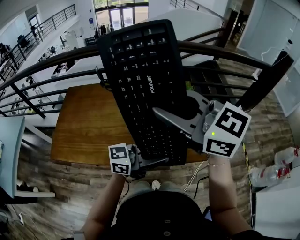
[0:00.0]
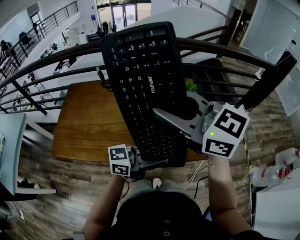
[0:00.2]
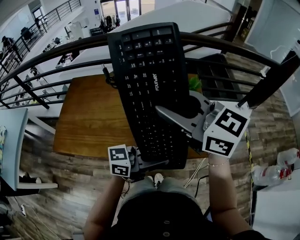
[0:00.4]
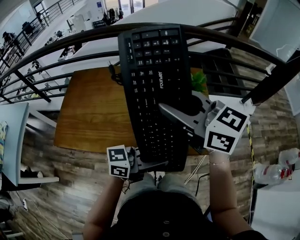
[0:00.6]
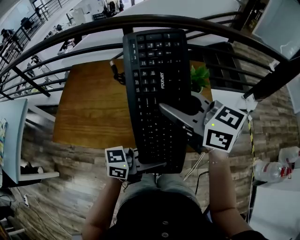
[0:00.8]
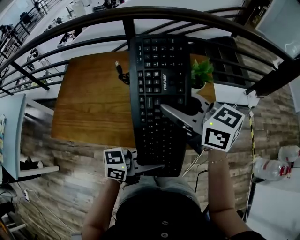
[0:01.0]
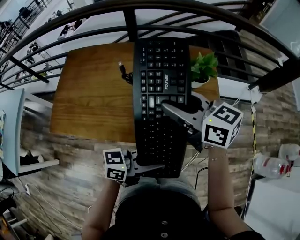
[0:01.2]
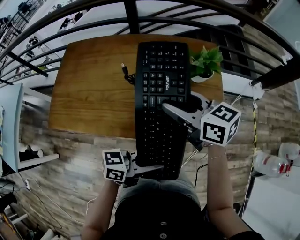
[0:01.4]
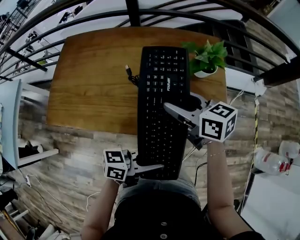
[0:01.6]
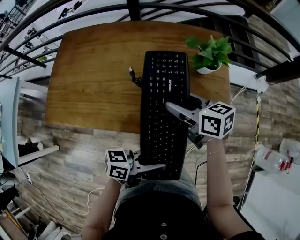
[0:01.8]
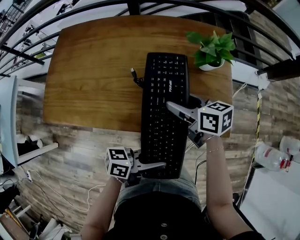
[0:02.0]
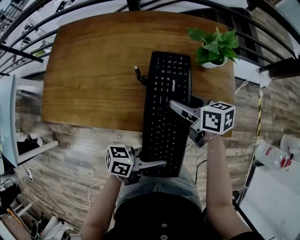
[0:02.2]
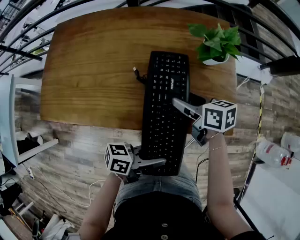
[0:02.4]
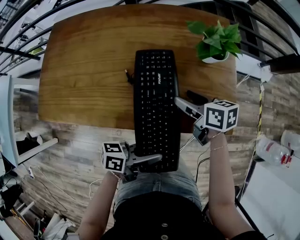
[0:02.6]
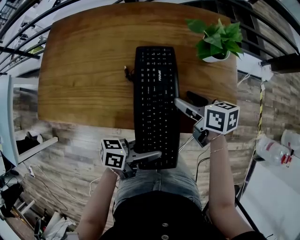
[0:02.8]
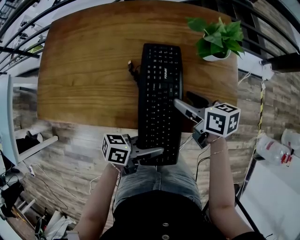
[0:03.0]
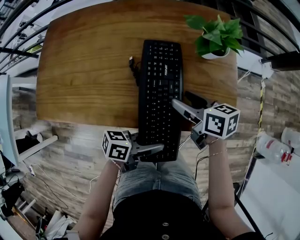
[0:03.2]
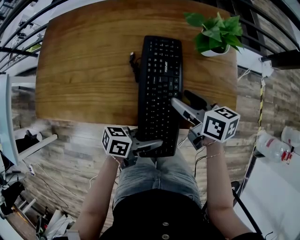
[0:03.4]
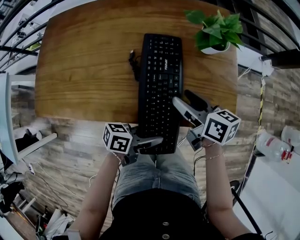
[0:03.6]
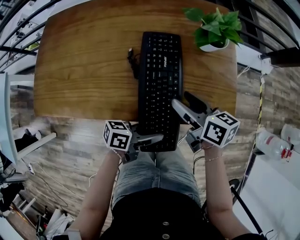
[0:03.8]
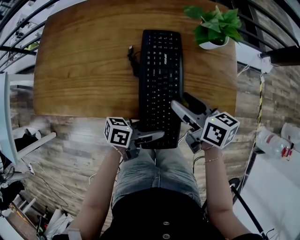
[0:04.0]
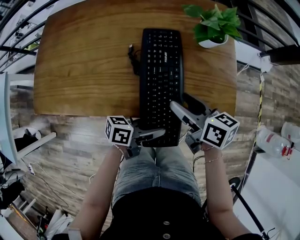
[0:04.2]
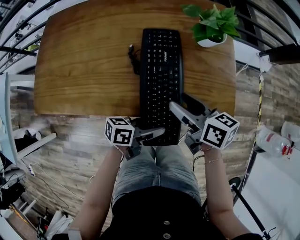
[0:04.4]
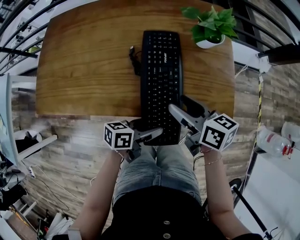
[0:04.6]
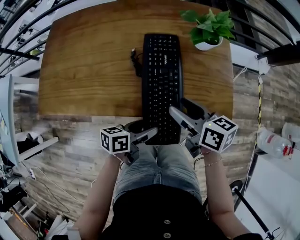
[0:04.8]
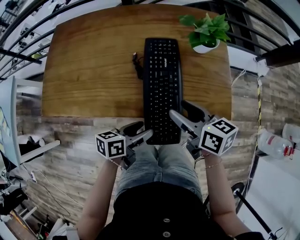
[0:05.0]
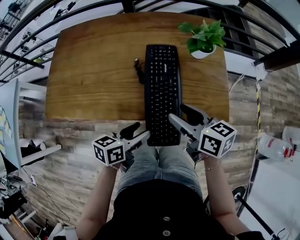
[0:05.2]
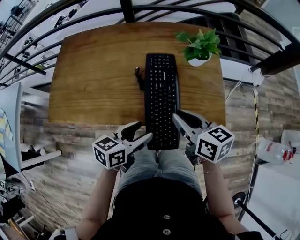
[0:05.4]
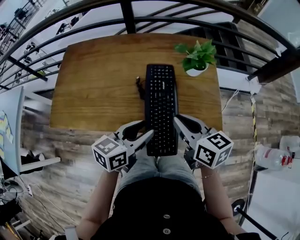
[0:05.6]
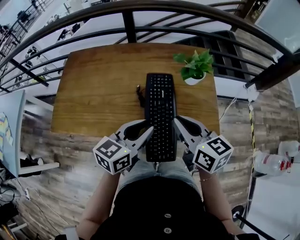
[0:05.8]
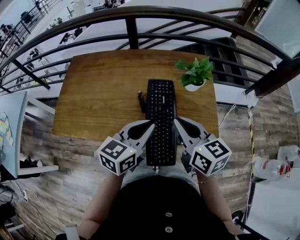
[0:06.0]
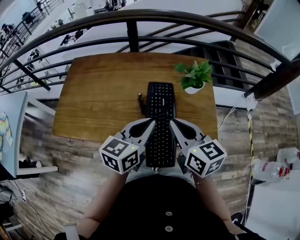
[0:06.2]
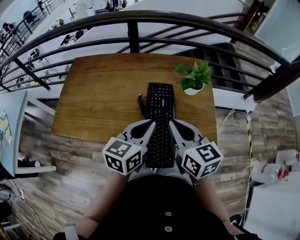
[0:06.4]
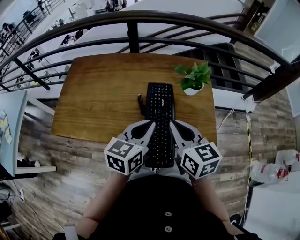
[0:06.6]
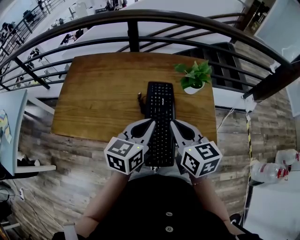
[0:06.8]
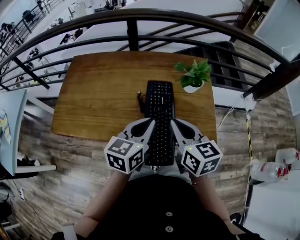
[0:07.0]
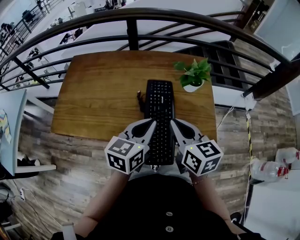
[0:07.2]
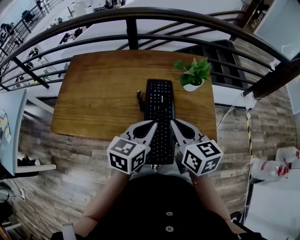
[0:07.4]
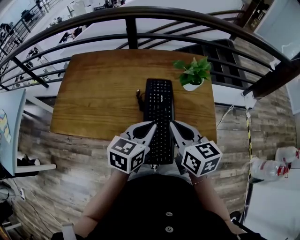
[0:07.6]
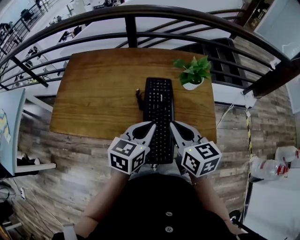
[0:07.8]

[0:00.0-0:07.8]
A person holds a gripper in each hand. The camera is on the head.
0:00.0 to 0:01.6: The left gripper goes approximately 15 cm downward, and rotates roughly 30 degrees, while the right gripper goes approximately 25 cm downward, turns by some 40 degrees, and opens.
0:01.6 to 0:03.2: The two grippers go roughly 10 cm downward. The right gripper swivels roughly 20 degrees.
0:03.2 to 0:04.6: The left gripper opens. The right gripper moves some 5 cm.
0:04.6 to 0:06.2: The right gripper heads upward, covering approximately 15 cm, turns by approximately 30 degrees, and closes up. The left gripper is displaced upward and forward by about 25 cm, rotates about 50 degrees, and closes up.
0:06.2 to 0:07.8: The grippers stay close to where they were, moving slightly.

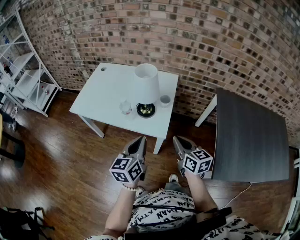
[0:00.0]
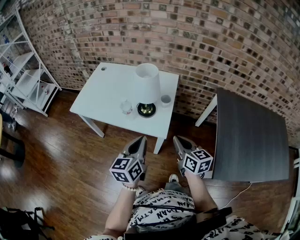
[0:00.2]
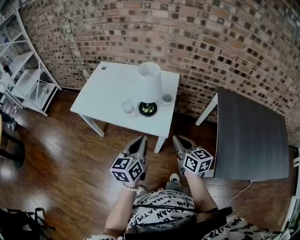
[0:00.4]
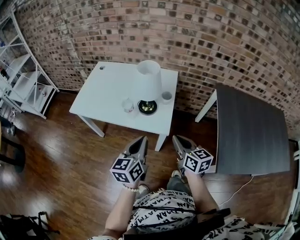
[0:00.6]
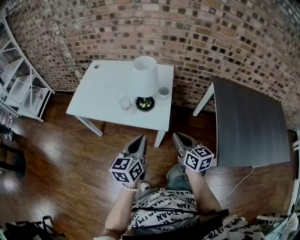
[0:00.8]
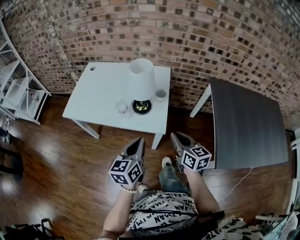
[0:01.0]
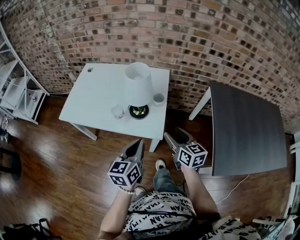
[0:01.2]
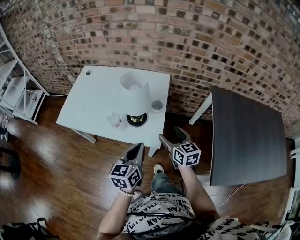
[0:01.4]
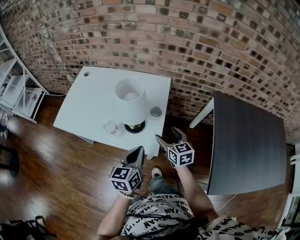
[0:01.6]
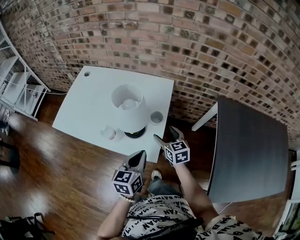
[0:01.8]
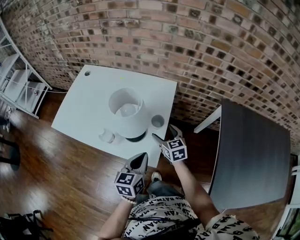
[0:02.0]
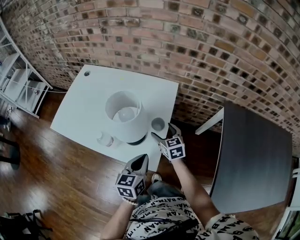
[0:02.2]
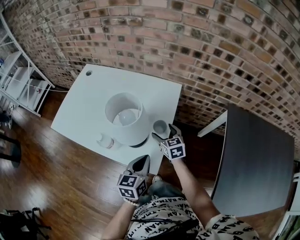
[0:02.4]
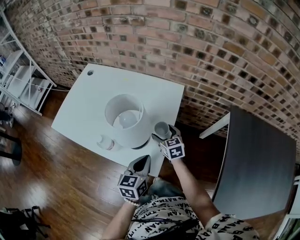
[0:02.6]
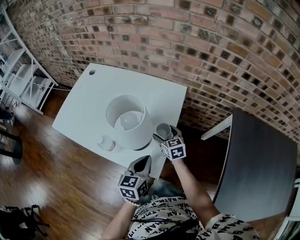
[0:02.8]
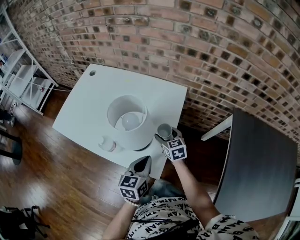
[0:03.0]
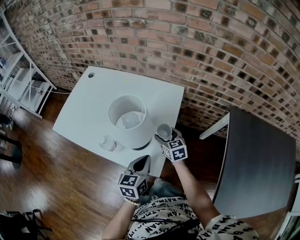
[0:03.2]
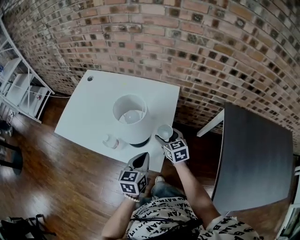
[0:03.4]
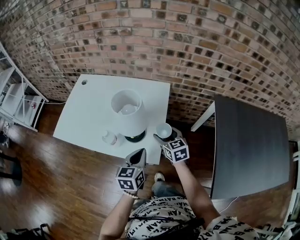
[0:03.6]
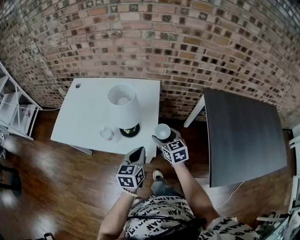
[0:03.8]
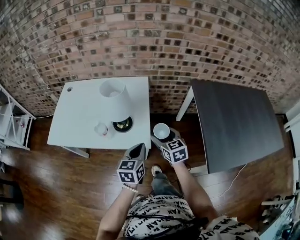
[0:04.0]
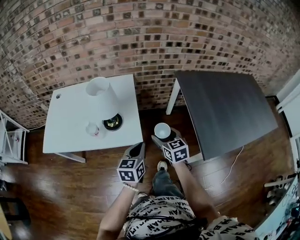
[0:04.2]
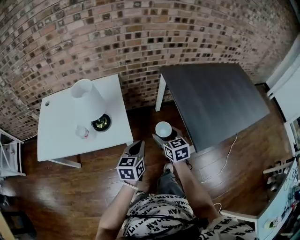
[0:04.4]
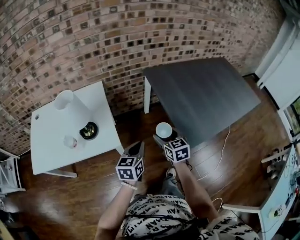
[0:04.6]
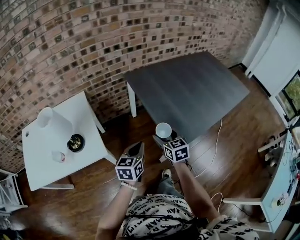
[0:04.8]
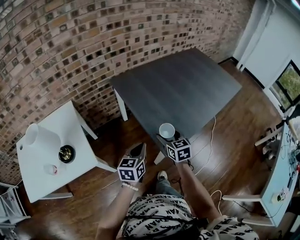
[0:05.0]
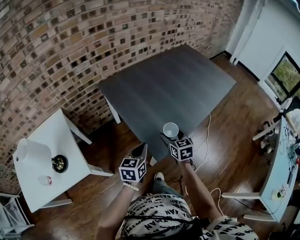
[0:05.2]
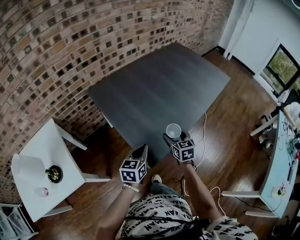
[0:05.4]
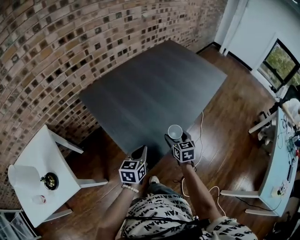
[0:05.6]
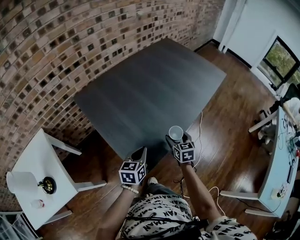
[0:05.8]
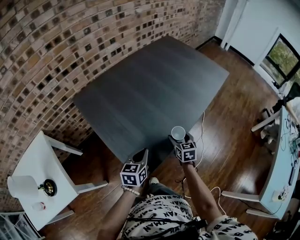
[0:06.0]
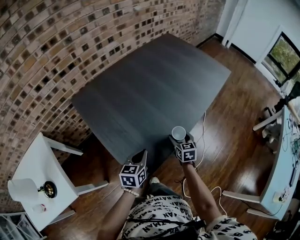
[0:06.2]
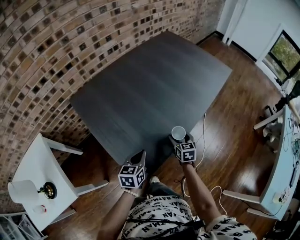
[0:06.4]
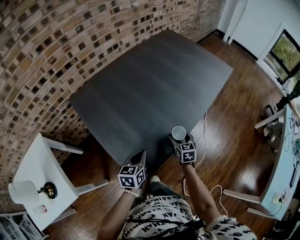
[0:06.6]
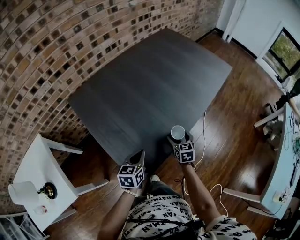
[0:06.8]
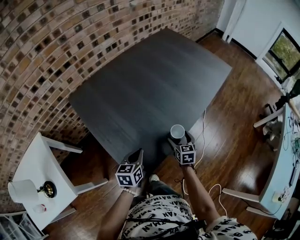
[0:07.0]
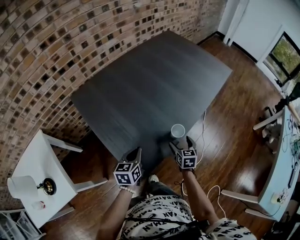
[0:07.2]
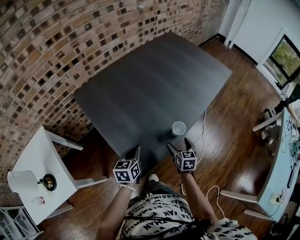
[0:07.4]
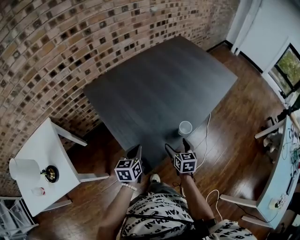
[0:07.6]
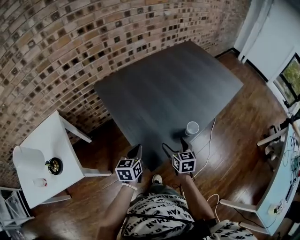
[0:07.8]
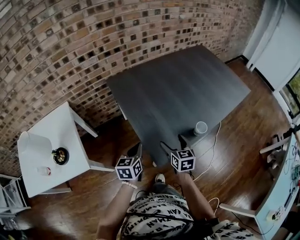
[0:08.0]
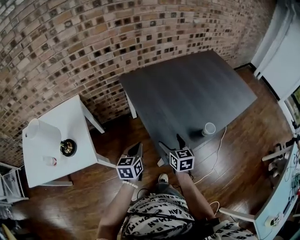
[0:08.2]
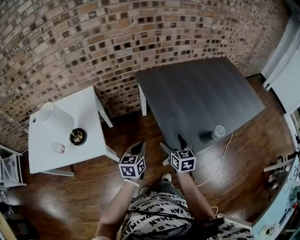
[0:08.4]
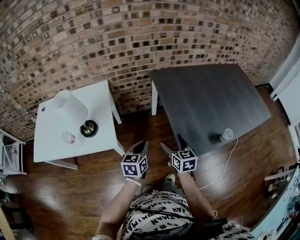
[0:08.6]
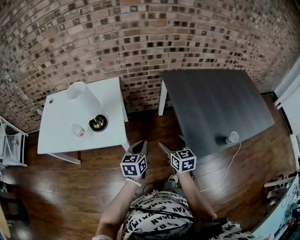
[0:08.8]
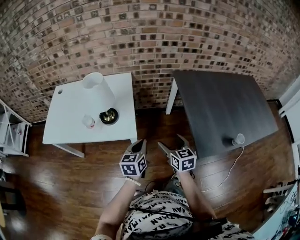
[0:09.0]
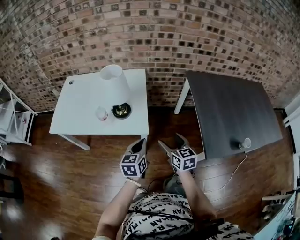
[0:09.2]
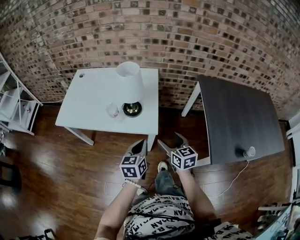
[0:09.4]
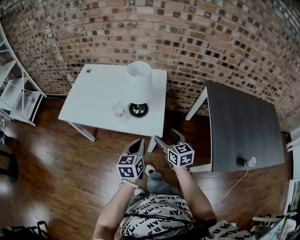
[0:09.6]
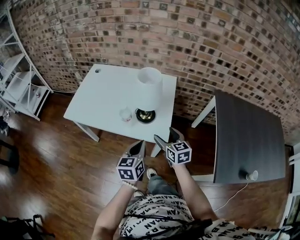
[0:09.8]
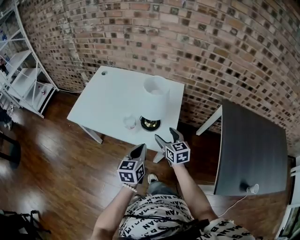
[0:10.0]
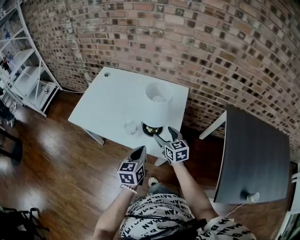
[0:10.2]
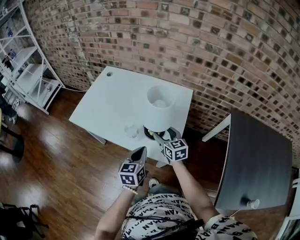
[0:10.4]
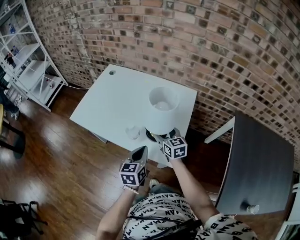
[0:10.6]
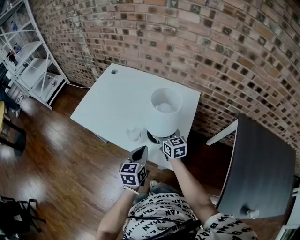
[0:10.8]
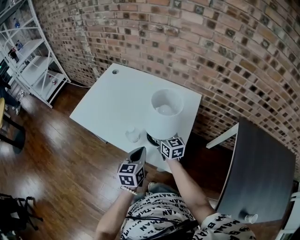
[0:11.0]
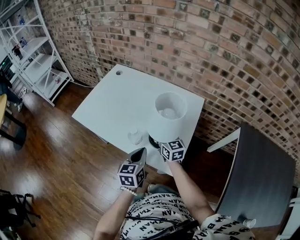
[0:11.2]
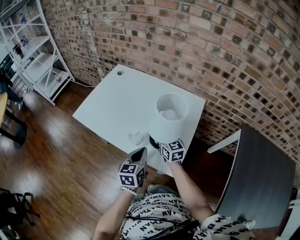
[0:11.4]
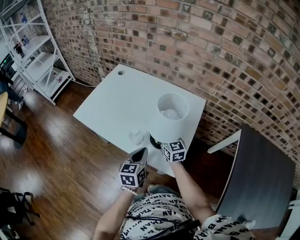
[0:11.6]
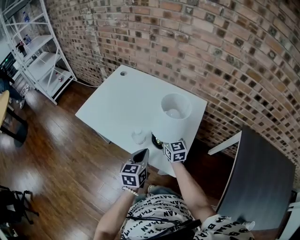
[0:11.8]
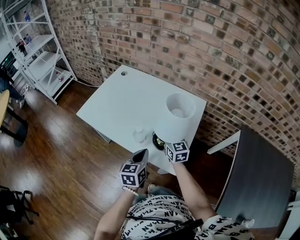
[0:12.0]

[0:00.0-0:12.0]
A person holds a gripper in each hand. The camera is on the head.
0:00.0 to 0:01.6: The right gripper goes some 20 cm forward and downward, and opens up. Meanwhile the left gripper heads forward and downward, covering roughly 10 cm.
0:01.6 to 0:03.0: The left gripper moves downward and forward, roughly 15 cm. Meanwhile the right gripper goes roughly 20 cm forward and downward.
0:03.0 to 0:04.4: The left gripper changes place by about 20 cm, and swivels about 30 degrees. Meanwhile the right gripper moves some 40 cm, and rotates about 30 degrees.
0:04.4 to 0:06.0: Both grippers are carried some 50 cm. The left gripper changes its angle by some 30 degrees. The right gripper rotates approximately 40 degrees.
0:06.0 to 0:07.6: The right gripper travels backward by about 10 cm. Meanwhile the left gripper travels to the left by approximately 5 cm.
0:07.6 to 0:09.0: Both grippers are carried approximately 40 cm. The left gripper changes its angle by about 30 degrees. The right gripper swivels roughly 40 degrees.
0:09.0 to 0:10.4: The left gripper changes place by roughly 25 cm, and rotates about 30 degrees, while the right gripper moves roughly 35 cm, and changes its angle by roughly 30 degrees.
0:10.4 to 0:12.0: The right gripper travels forward by roughly 5 cm, and closes up.

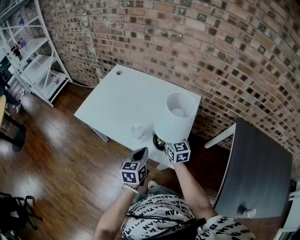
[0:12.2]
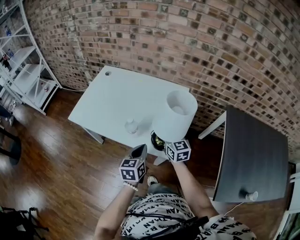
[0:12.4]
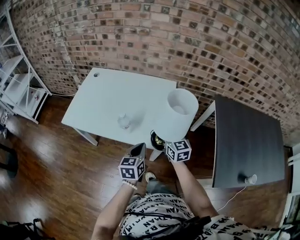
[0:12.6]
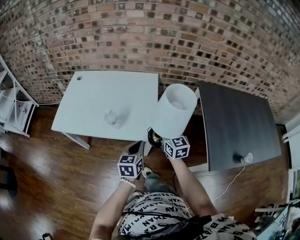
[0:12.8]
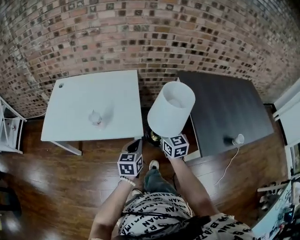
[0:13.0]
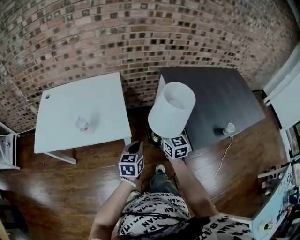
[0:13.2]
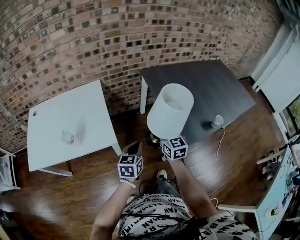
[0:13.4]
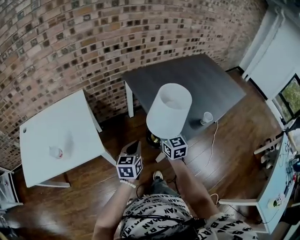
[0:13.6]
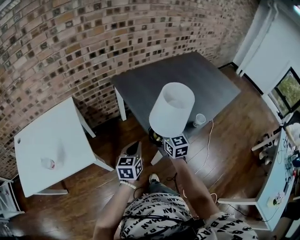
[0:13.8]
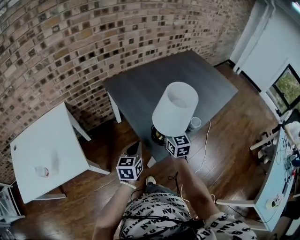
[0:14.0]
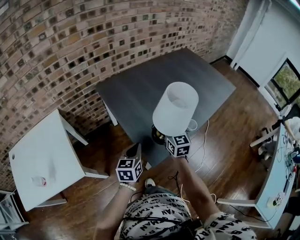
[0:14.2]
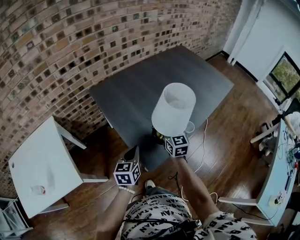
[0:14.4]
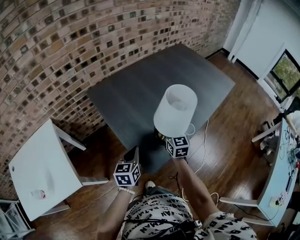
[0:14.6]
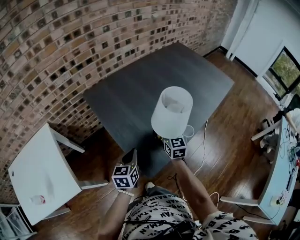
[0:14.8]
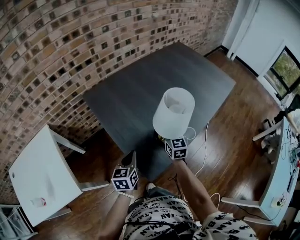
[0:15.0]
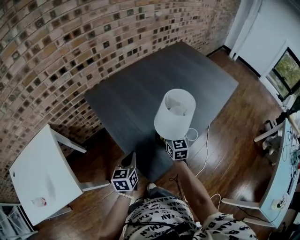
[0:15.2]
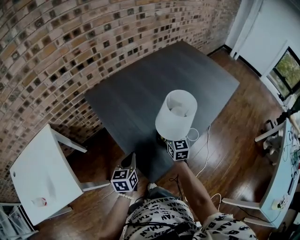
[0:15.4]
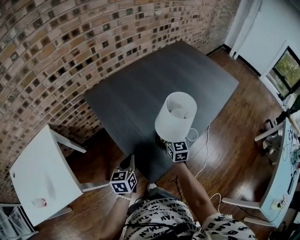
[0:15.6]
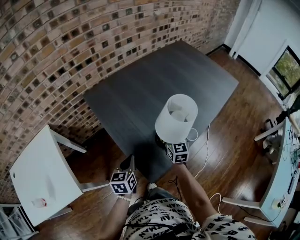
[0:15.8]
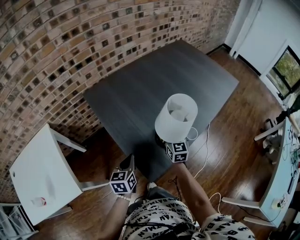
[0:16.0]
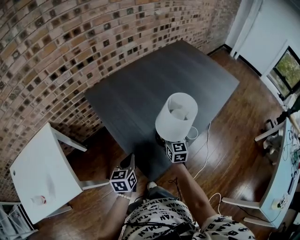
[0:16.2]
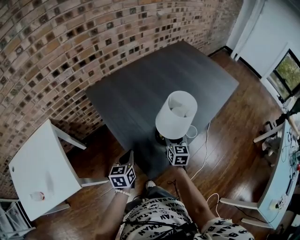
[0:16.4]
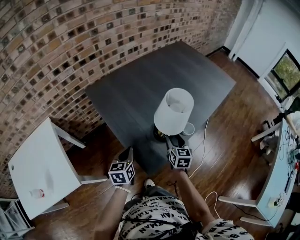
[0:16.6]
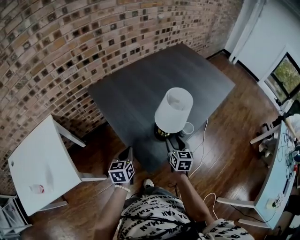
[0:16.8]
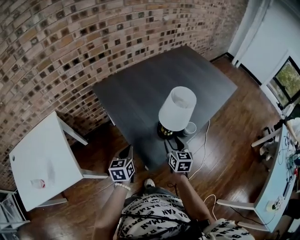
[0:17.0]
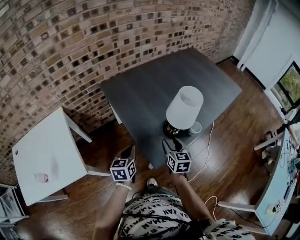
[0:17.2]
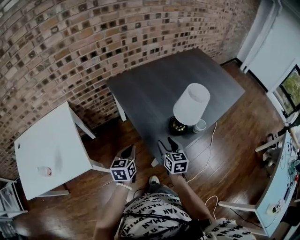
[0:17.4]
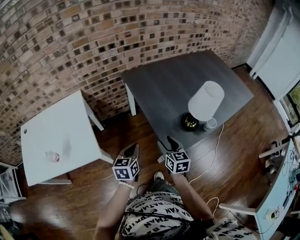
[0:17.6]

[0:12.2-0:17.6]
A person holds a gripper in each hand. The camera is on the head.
0:12.2 to 0:13.6: The pair of grippers is taken some 50 cm. The right gripper swivels approximately 50 degrees, while the left gripper changes its angle by roughly 50 degrees.
0:13.6 to 0:15.0: The left gripper heads forward and to the right, covering approximately 25 cm. Meanwhile the right gripper goes some 30 cm to the right and forward.
0:15.0 to 0:16.2: The grippers make only small movements.
0:16.2 to 0:17.6: The right gripper shifts approximately 25 cm backward and to the left, and swivels roughly 20 degrees, while the left gripper is displaced backward and to the left by approximately 15 cm.
